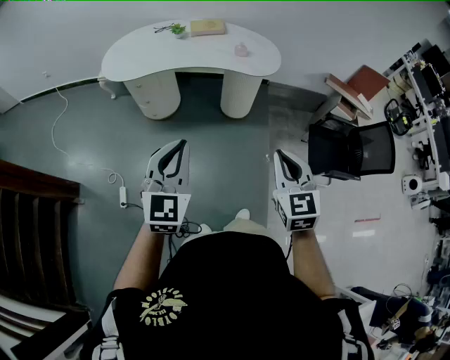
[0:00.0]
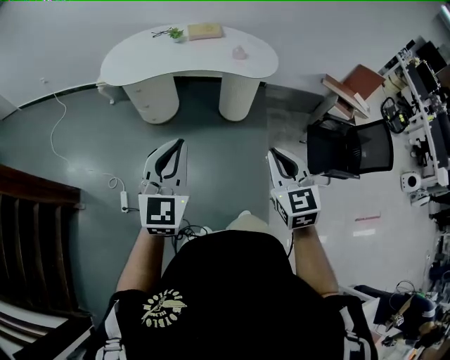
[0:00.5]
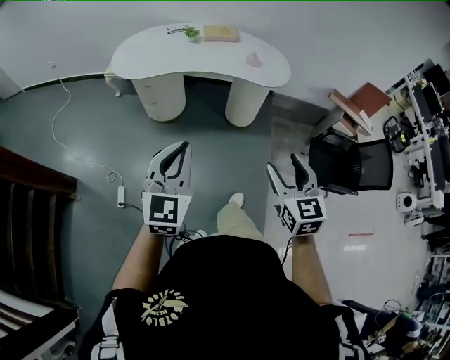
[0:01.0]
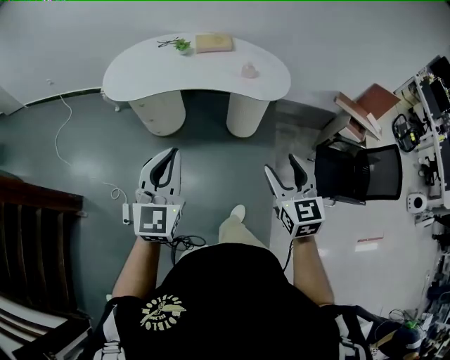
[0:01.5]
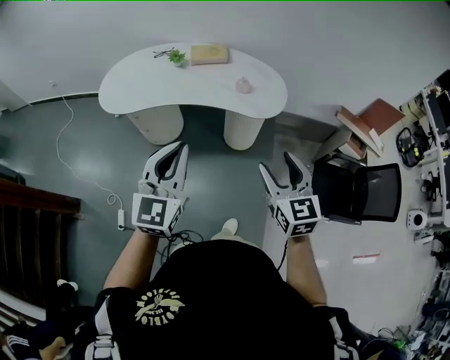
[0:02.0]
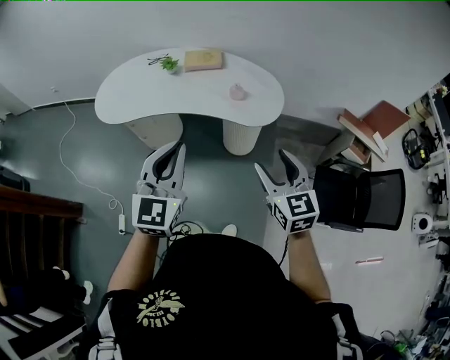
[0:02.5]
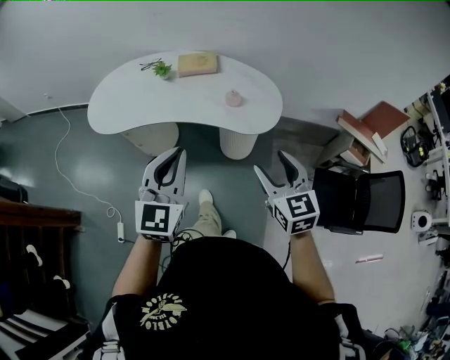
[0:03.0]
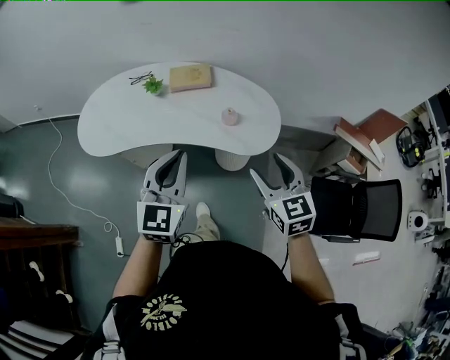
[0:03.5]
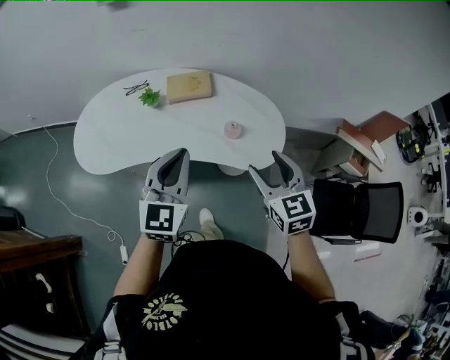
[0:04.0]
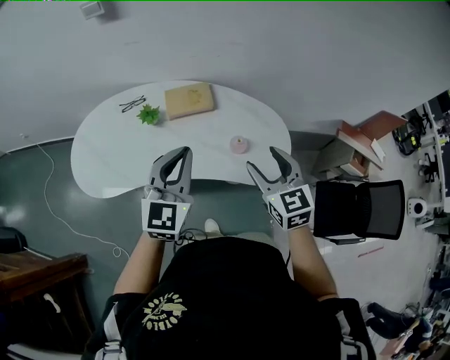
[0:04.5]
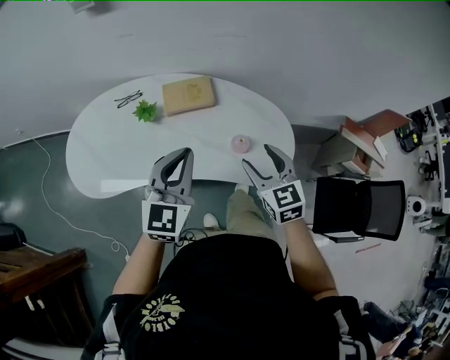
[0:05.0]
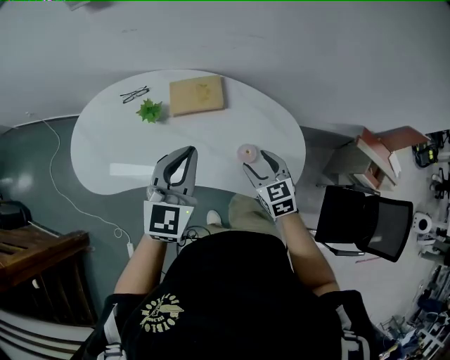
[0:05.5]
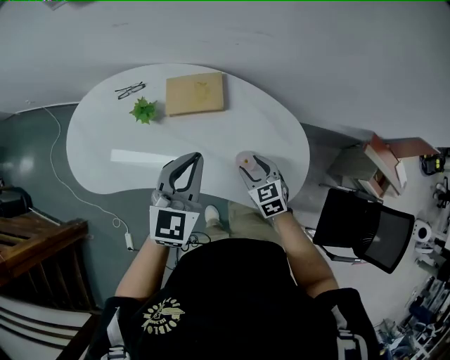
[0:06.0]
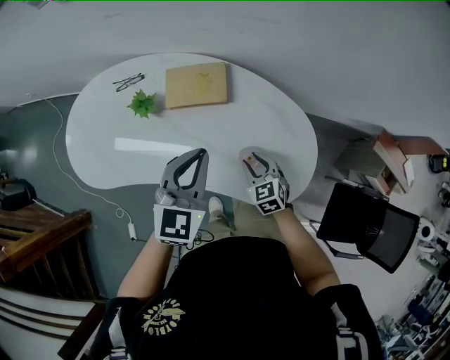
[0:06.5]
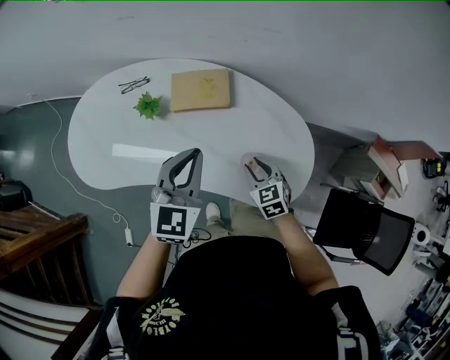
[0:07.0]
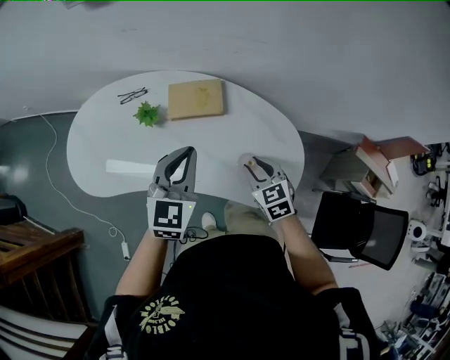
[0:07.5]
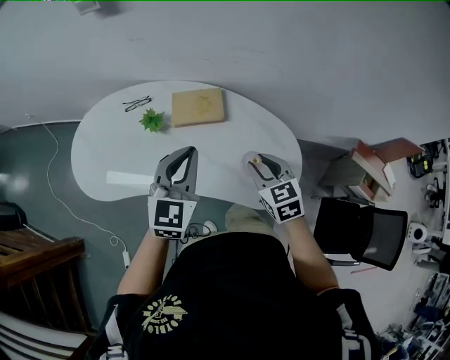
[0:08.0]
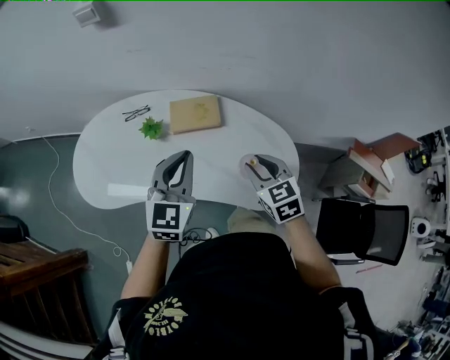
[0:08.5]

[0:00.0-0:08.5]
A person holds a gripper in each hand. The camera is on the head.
0:00.0 to 0:02.0: Both grippers move forward, approximately 25 cm. The right gripper opens its fingers.
0:02.0 to 0:04.0: Both grippers travel together forward, about 35 cm.
0:04.0 to 0:06.5: The left gripper moves forward and downward, roughly 30 cm; the right gripper is displaced downward and forward by roughly 40 cm, rotates about 20 degrees, and closes.
0:06.5 to 0:08.5: The right gripper goes about 20 cm upward. The left gripper shifts some 10 cm upward and to the left.

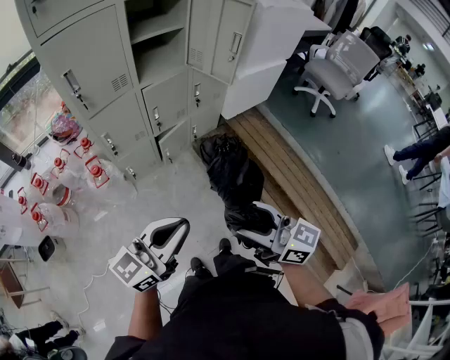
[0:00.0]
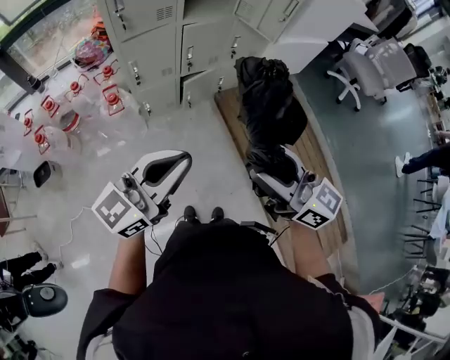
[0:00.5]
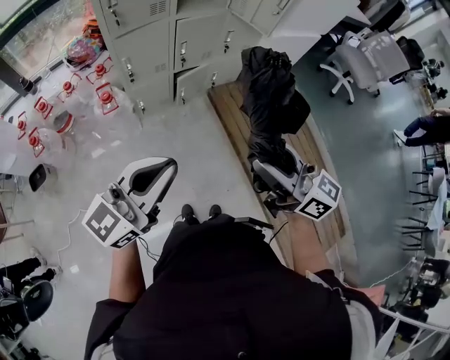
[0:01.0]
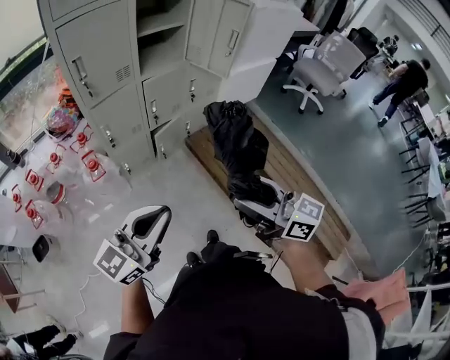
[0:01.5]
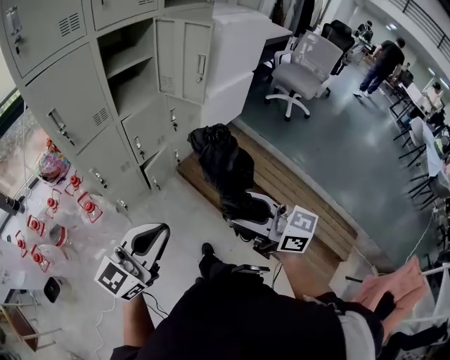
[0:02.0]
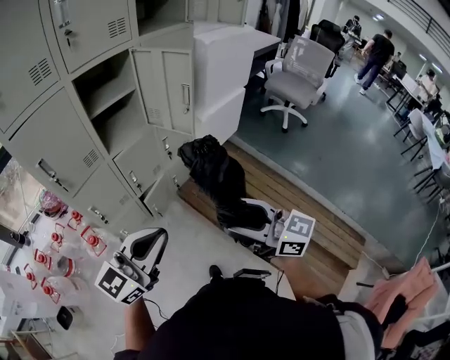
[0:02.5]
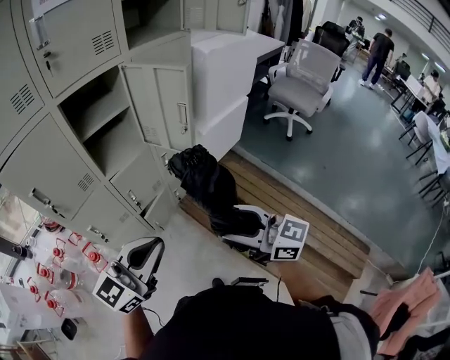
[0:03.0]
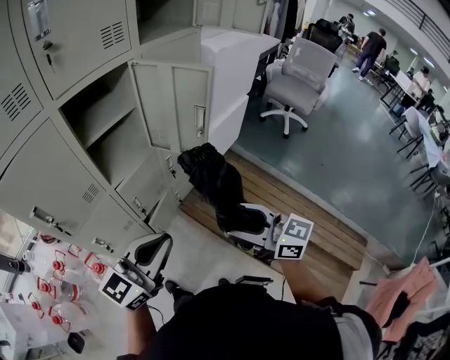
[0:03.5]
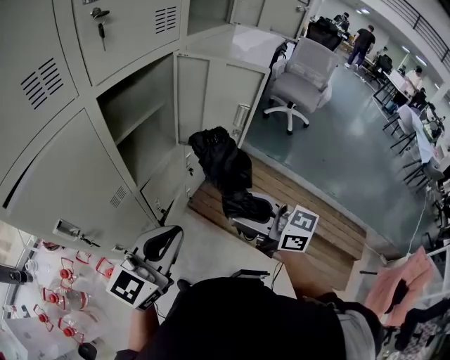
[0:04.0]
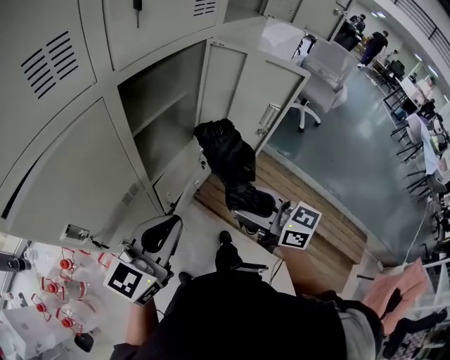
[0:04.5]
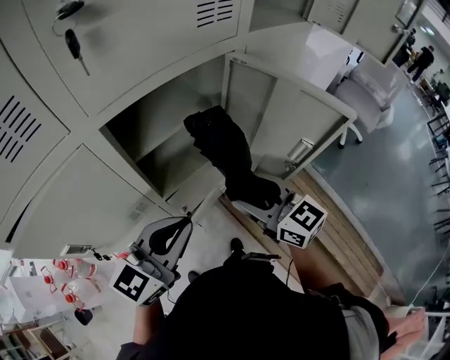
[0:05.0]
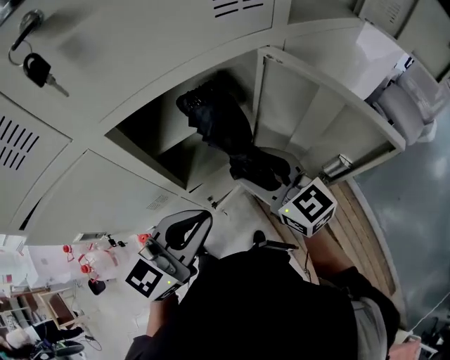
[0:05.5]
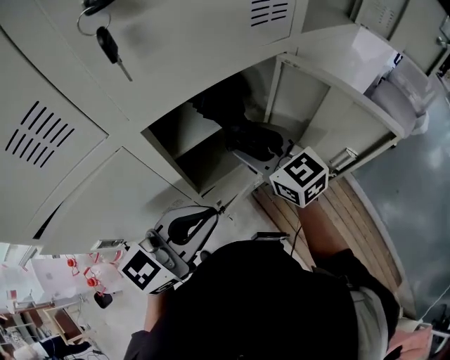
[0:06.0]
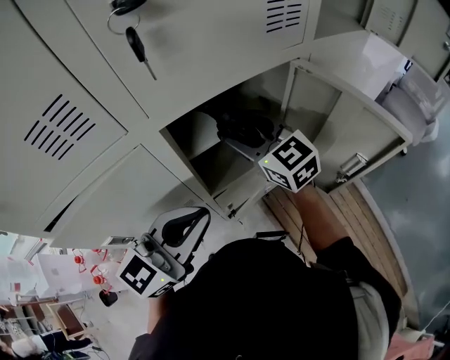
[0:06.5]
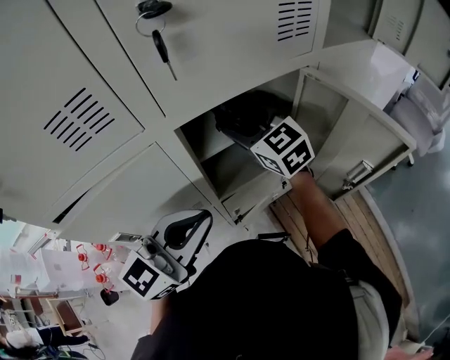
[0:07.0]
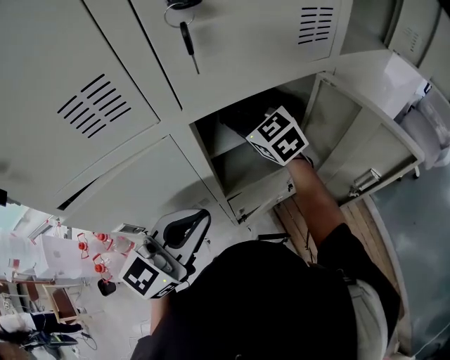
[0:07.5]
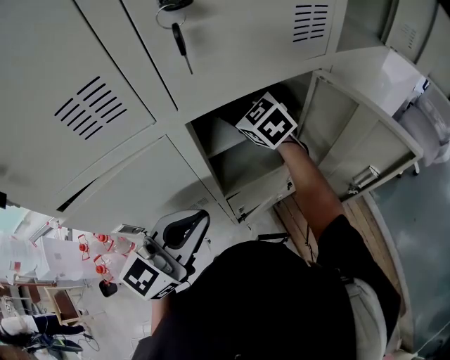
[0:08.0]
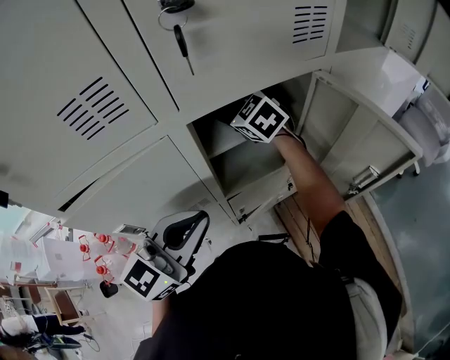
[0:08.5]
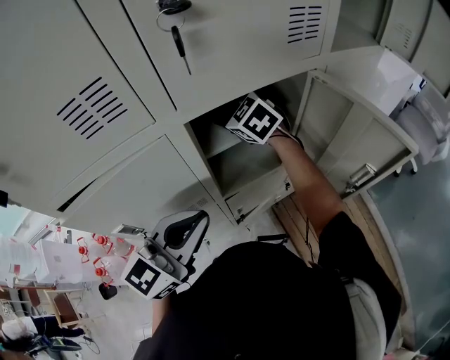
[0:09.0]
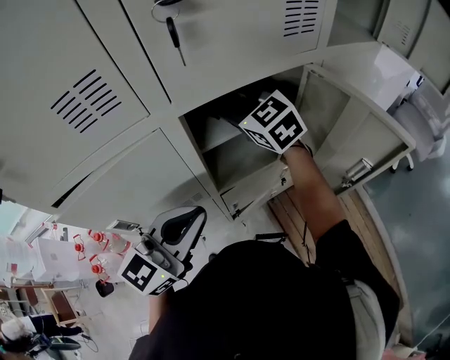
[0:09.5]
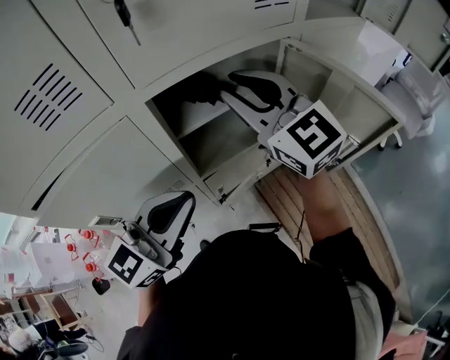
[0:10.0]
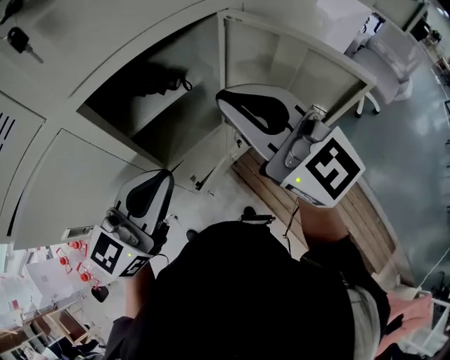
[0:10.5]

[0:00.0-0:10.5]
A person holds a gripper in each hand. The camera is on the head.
0:02.0 to 0:04.0: The right gripper is displaced forward and to the left by approximately 35 cm, while the left gripper shifts approximately 35 cm forward.
0:04.0 to 0:06.5: The right gripper travels forward and to the left by about 40 cm, and rotates some 30 degrees; the left gripper moves forward, some 15 cm.
0:06.5 to 0:08.5: The right gripper heads forward and to the left, covering roughly 10 cm, and swivels approximately 20 degrees.
0:08.5 to 0:10.5: The left gripper goes roughly 5 cm to the right. The right gripper goes some 30 cm backward, to the right and upward, tilts its fingers about 40 degrees upward, and closes its fingers.

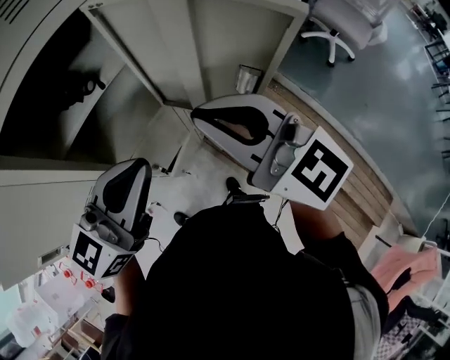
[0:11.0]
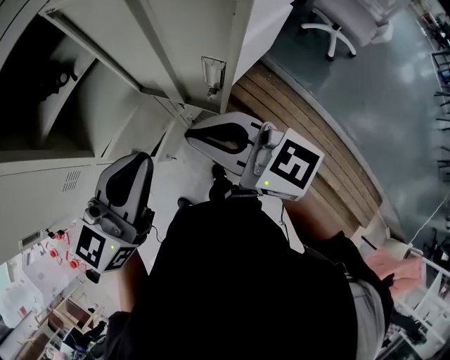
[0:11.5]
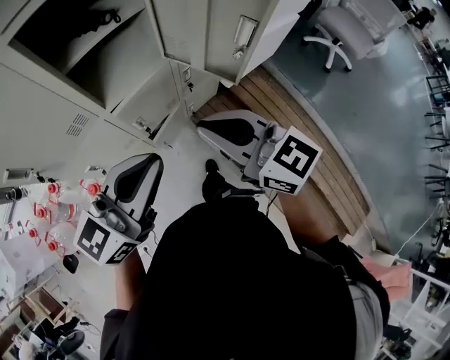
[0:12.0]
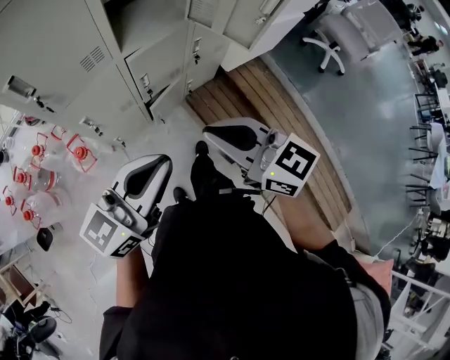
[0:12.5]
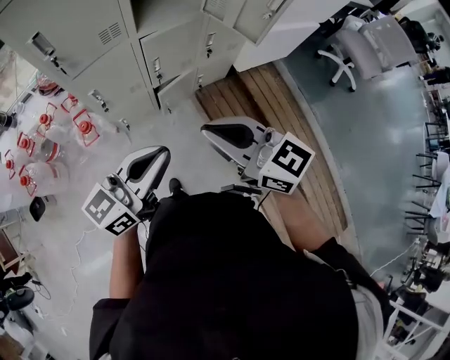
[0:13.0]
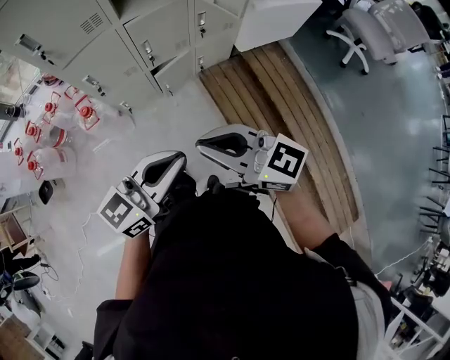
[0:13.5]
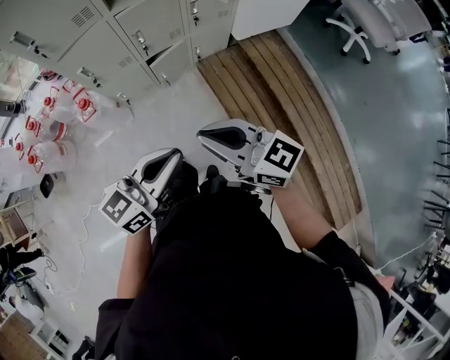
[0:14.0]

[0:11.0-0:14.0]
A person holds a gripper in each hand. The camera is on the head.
0:11.0 to 0:12.5: The left gripper shifts approximately 30 cm backward, while the right gripper heads backward and downward, covering approximately 30 cm, and changes its angle by roughly 20 degrees.
0:12.5 to 0:14.0: The left gripper travels backward, to the right and downward by roughly 25 cm; the right gripper is displaced backward and to the right by roughly 20 cm.

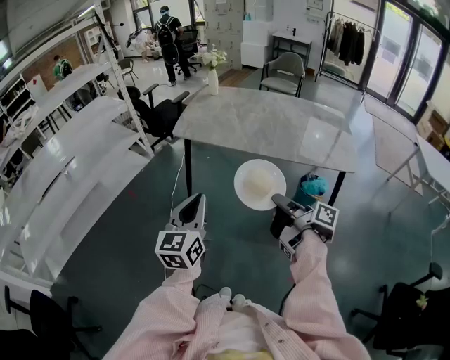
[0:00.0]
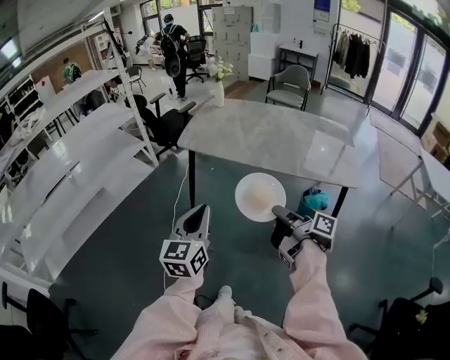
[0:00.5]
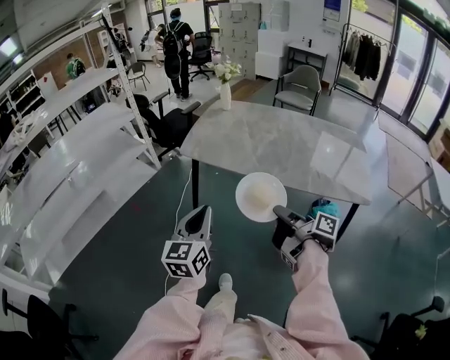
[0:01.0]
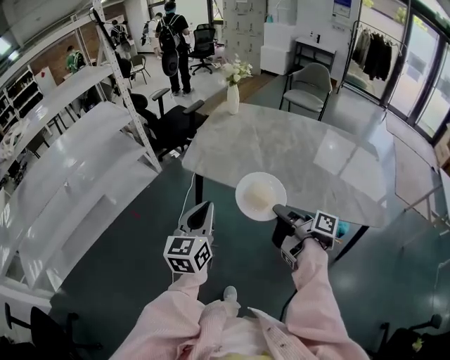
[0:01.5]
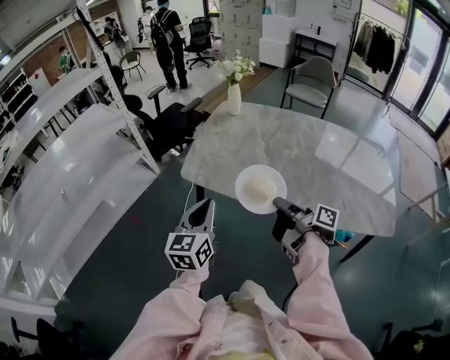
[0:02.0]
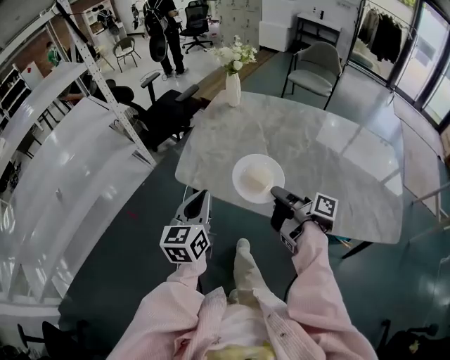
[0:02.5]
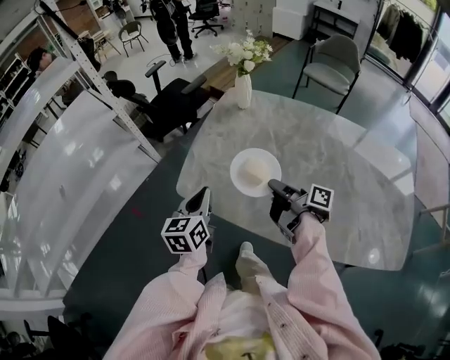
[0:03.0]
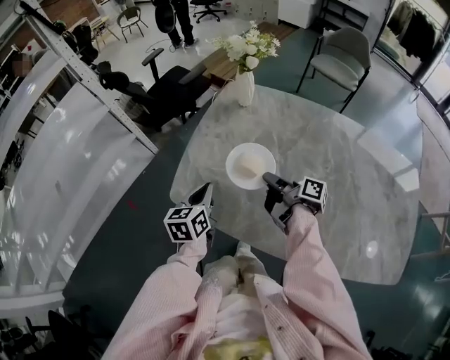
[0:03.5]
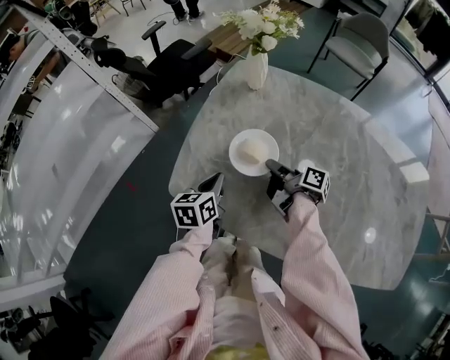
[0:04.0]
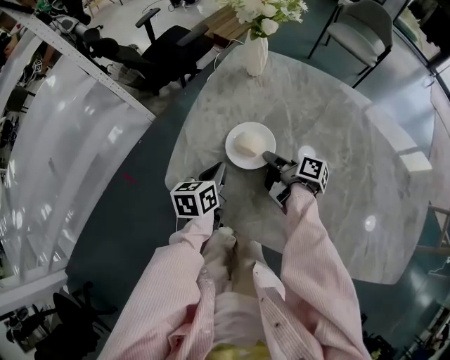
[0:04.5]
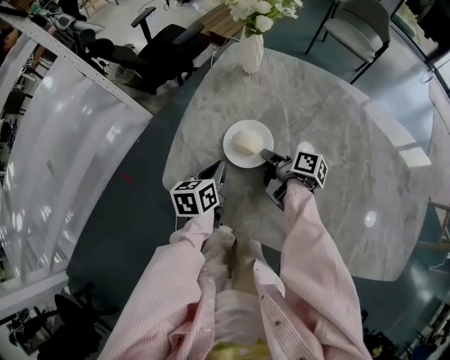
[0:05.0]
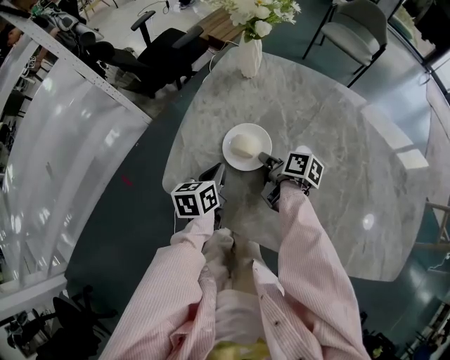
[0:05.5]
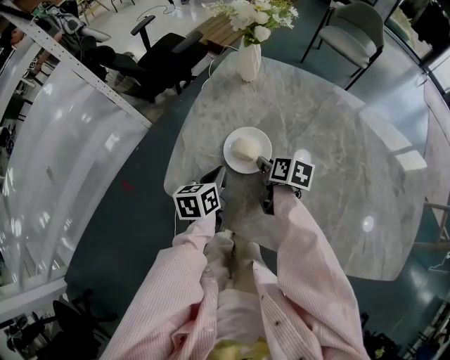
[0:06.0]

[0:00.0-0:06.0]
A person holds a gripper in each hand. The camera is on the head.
0:00.0 to 0:02.0: Both grippers move forward, some 40 cm.
0:02.0 to 0:04.0: Both grippers move forward and downward, approximately 35 cm. The left gripper turns by some 30 degrees.
0:04.0 to 0:06.0: The right gripper tilts its fingers approximately 30 degrees downward.
